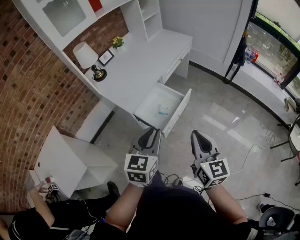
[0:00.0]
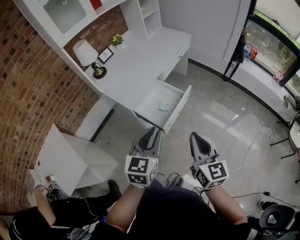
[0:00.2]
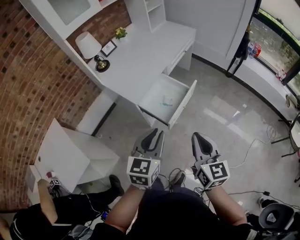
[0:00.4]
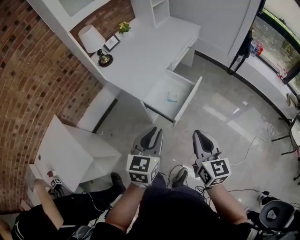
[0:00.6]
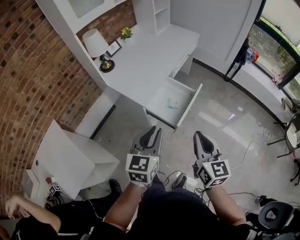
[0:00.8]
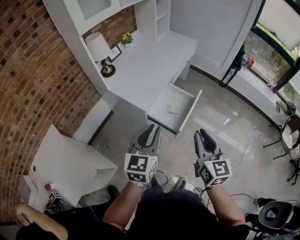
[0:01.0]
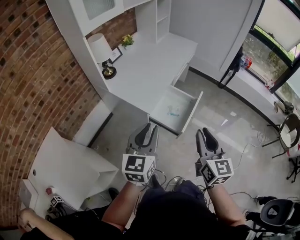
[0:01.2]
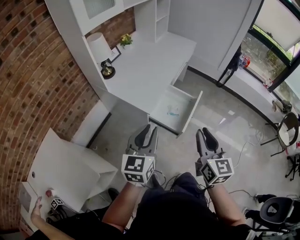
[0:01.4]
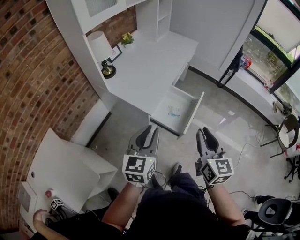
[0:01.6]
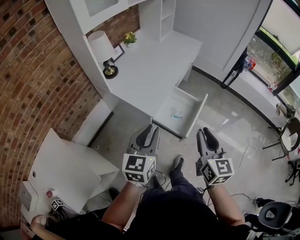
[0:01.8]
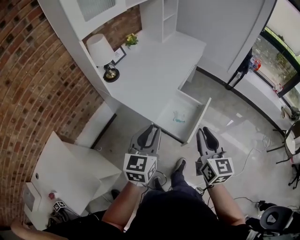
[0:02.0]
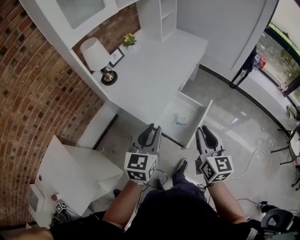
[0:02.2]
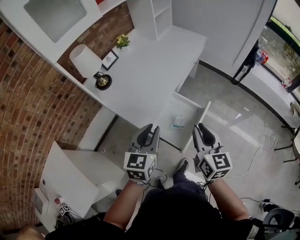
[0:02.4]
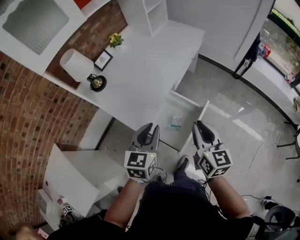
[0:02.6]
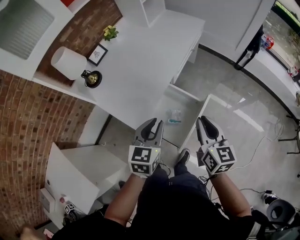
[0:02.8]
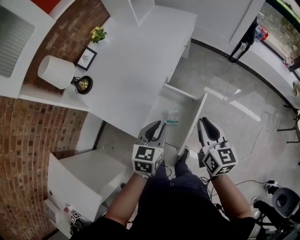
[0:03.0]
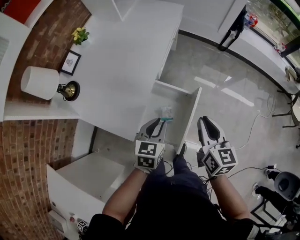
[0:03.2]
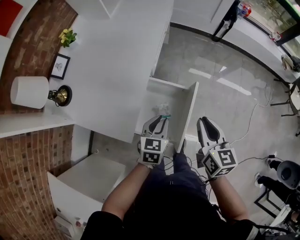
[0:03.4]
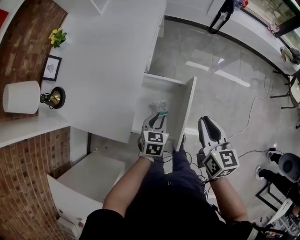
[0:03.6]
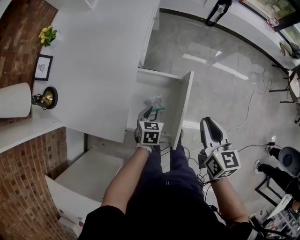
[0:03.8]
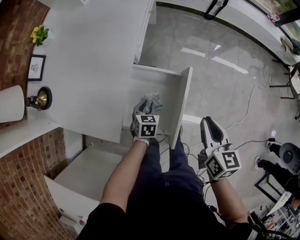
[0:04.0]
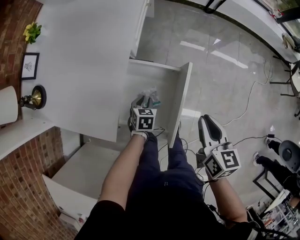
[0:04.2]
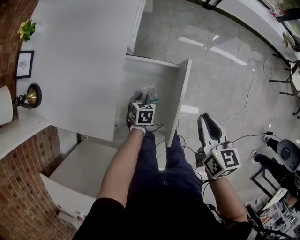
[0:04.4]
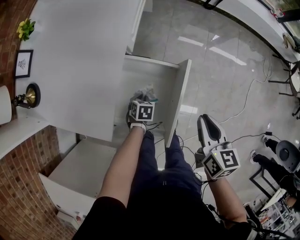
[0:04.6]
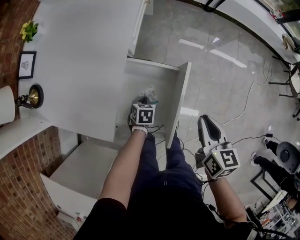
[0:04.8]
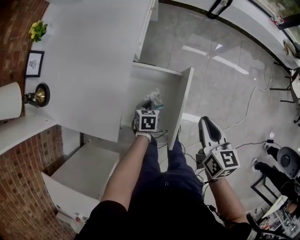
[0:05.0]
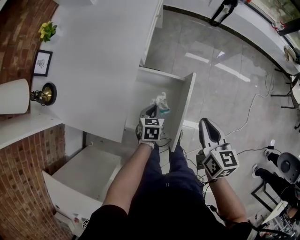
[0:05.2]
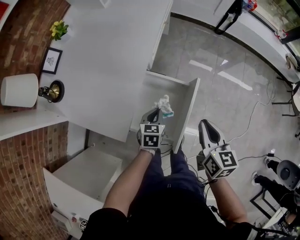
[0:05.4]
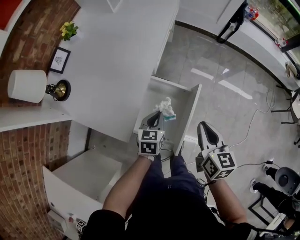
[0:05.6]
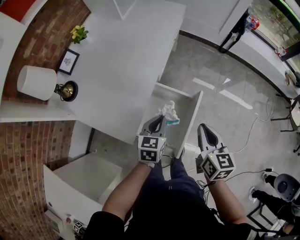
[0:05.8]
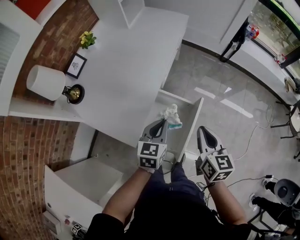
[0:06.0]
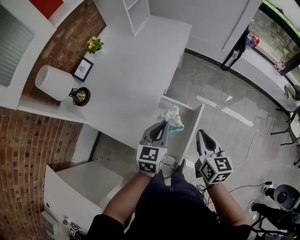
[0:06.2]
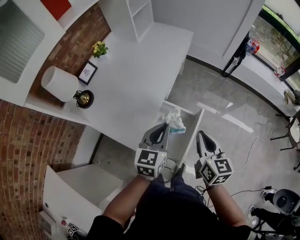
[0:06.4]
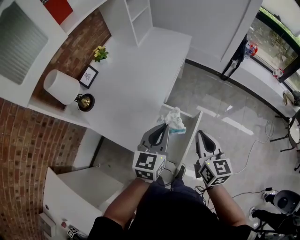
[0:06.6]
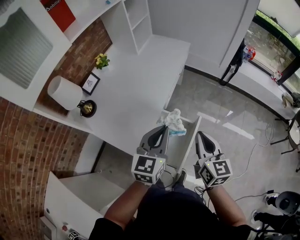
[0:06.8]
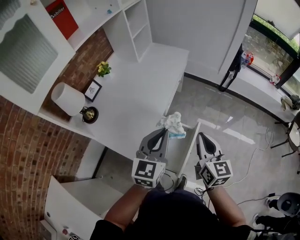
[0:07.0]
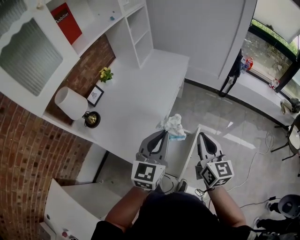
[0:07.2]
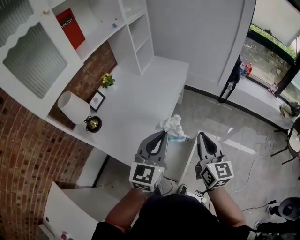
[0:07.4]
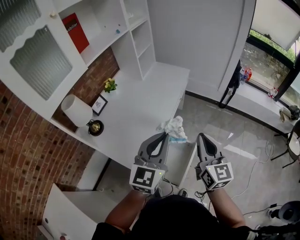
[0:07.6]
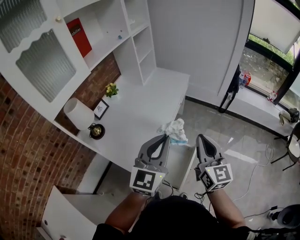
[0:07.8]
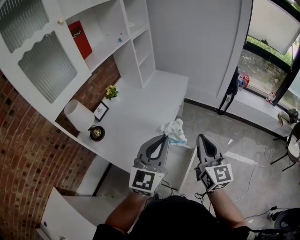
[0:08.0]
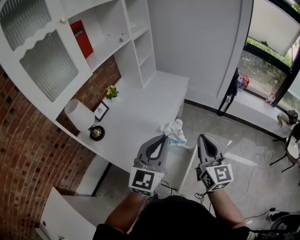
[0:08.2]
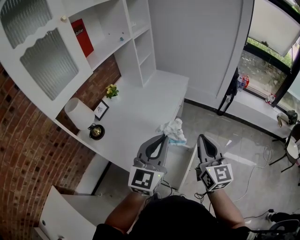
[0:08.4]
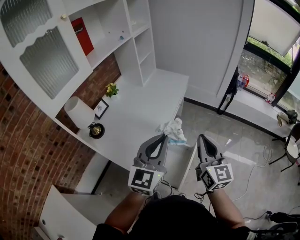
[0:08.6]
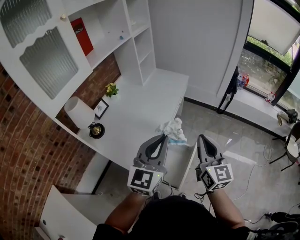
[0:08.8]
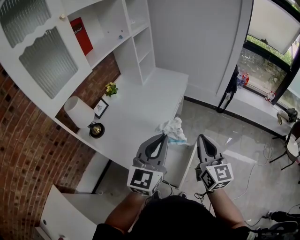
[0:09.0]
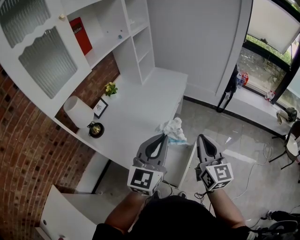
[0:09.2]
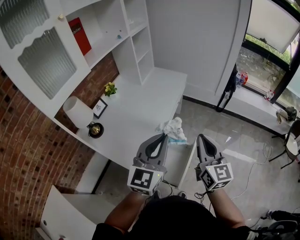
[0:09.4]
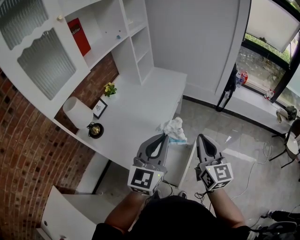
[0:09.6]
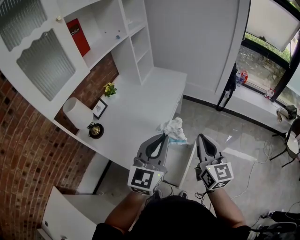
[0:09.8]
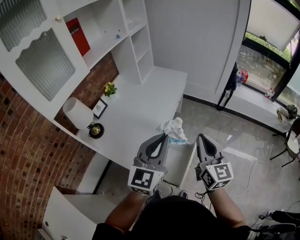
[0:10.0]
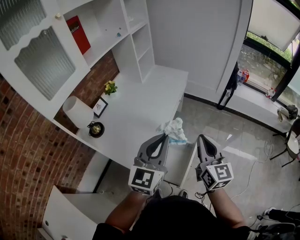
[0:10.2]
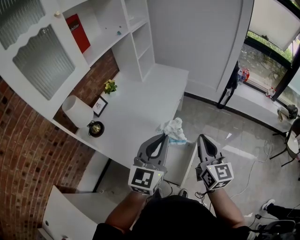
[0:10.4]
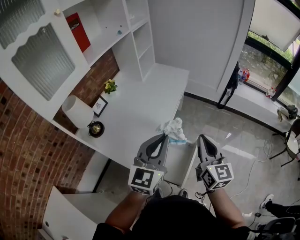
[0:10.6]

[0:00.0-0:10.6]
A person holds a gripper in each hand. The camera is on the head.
0:00.0 to 0:01.6: The grippers both shift to the left by roughly 20 cm.
0:01.6 to 0:03.0: Both grippers move forward, downward and to the right, some 35 cm. The left gripper changes its angle by roughly 20 degrees.
0:03.0 to 0:04.6: The left gripper goes approximately 40 cm downward, and tilts its fingers approximately 40 degrees downward, while the right gripper moves downward and to the right, approximately 15 cm, and turns by about 20 degrees.
0:04.6 to 0:06.0: The left gripper goes some 35 cm upward, and tilts its fingers roughly 40 degrees upward, while the right gripper shifts some 15 cm upward and to the left.
0:06.0 to 0:07.6: Both grippers move upward, roughly 25 cm. The left gripper swivels some 30 degrees, while the right gripper turns by roughly 30 degrees.
0:07.6 to 0:10.6: The grippers stay close to where they were, moving slightly.

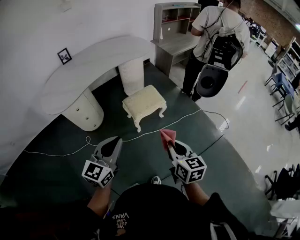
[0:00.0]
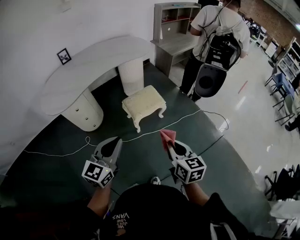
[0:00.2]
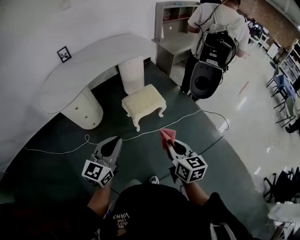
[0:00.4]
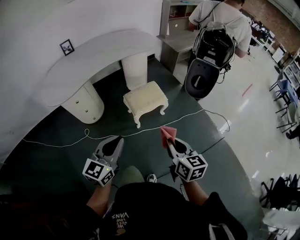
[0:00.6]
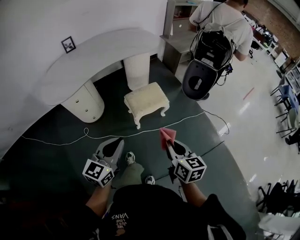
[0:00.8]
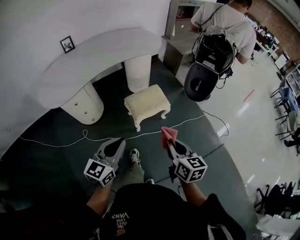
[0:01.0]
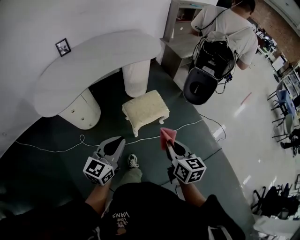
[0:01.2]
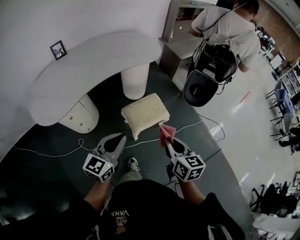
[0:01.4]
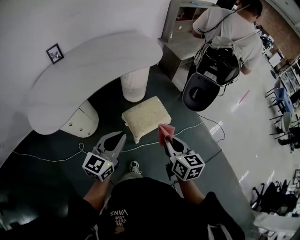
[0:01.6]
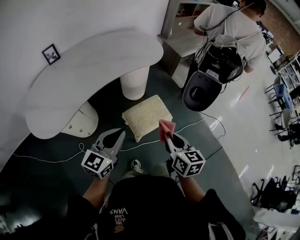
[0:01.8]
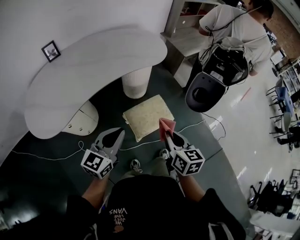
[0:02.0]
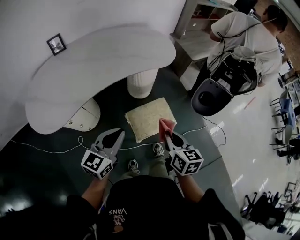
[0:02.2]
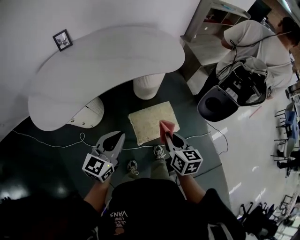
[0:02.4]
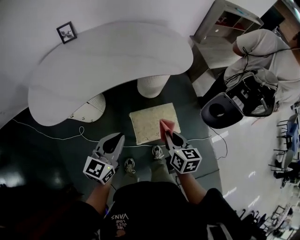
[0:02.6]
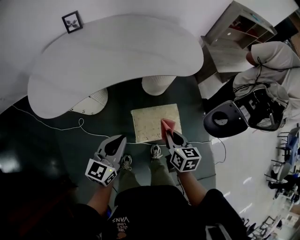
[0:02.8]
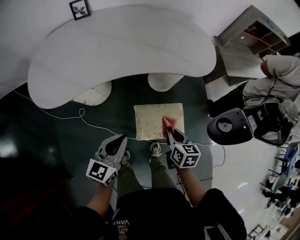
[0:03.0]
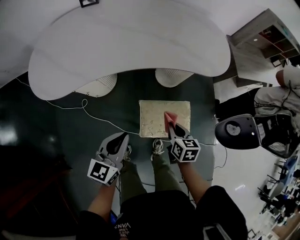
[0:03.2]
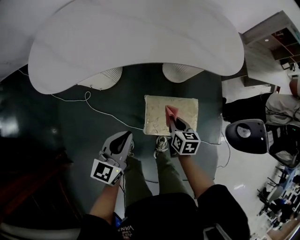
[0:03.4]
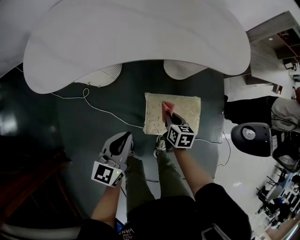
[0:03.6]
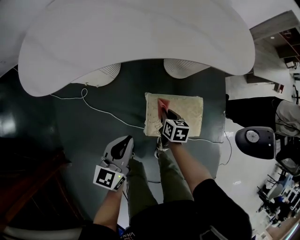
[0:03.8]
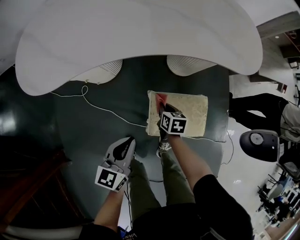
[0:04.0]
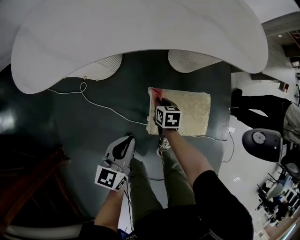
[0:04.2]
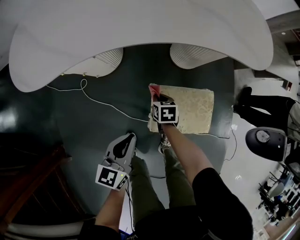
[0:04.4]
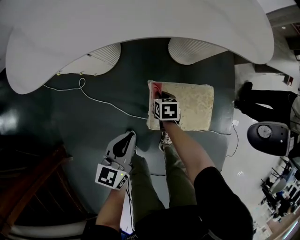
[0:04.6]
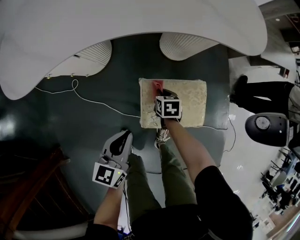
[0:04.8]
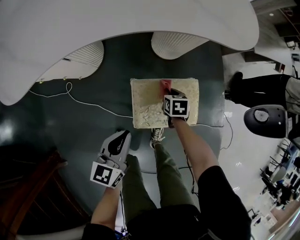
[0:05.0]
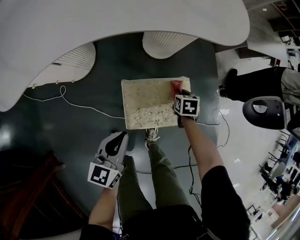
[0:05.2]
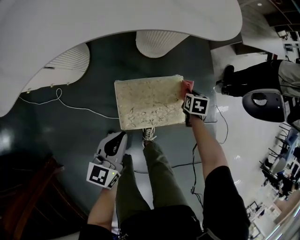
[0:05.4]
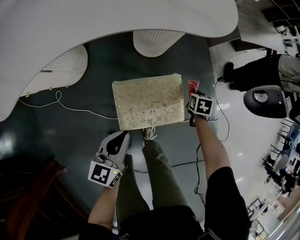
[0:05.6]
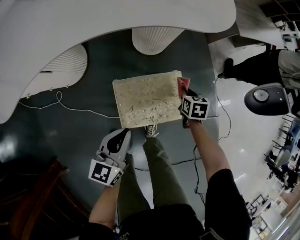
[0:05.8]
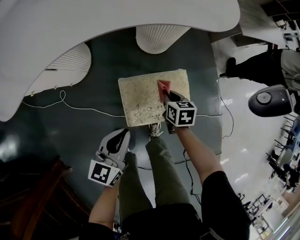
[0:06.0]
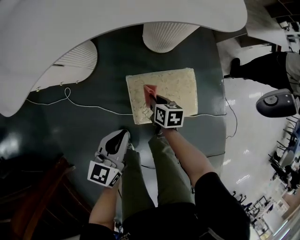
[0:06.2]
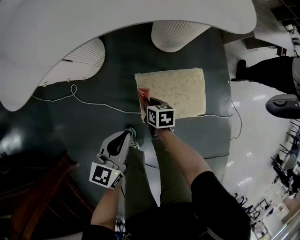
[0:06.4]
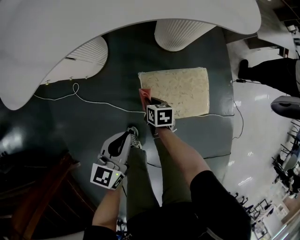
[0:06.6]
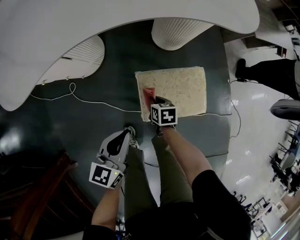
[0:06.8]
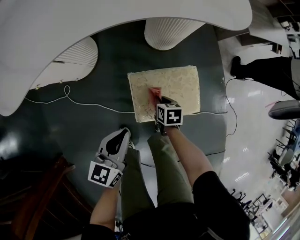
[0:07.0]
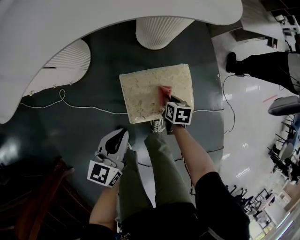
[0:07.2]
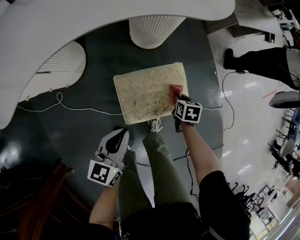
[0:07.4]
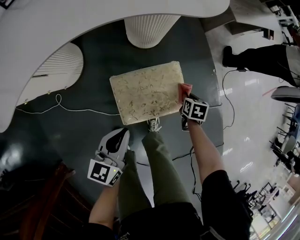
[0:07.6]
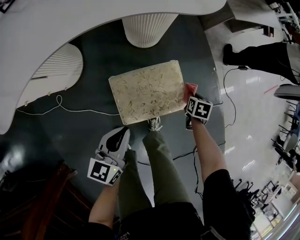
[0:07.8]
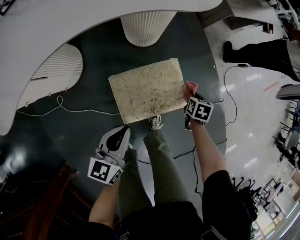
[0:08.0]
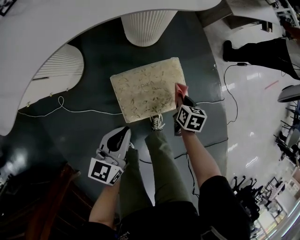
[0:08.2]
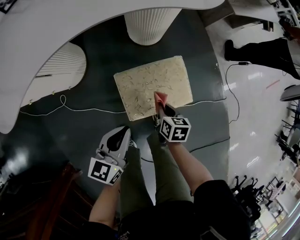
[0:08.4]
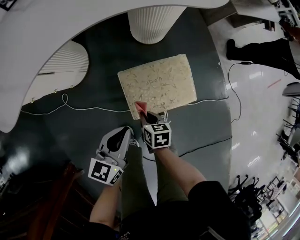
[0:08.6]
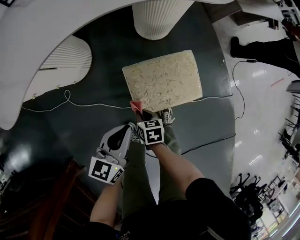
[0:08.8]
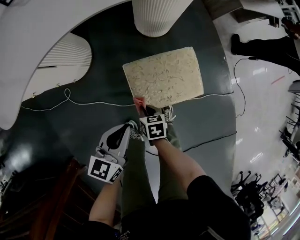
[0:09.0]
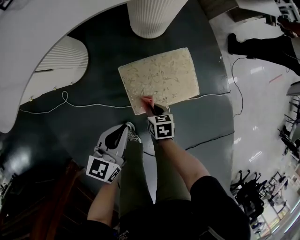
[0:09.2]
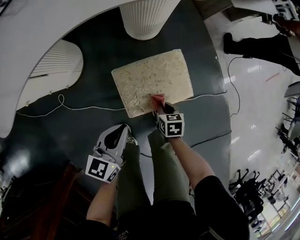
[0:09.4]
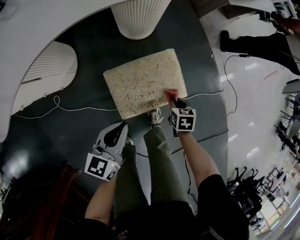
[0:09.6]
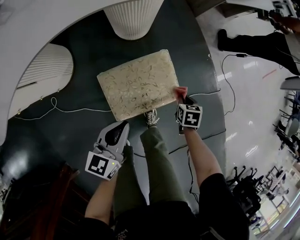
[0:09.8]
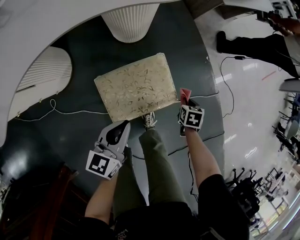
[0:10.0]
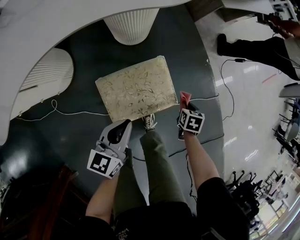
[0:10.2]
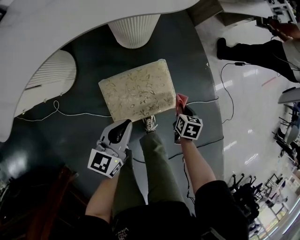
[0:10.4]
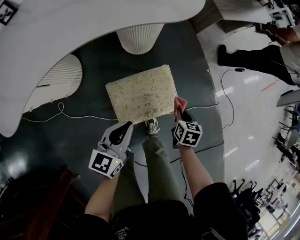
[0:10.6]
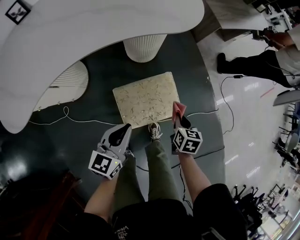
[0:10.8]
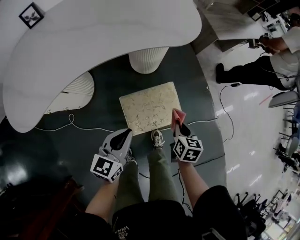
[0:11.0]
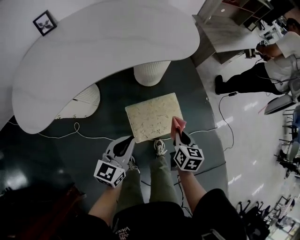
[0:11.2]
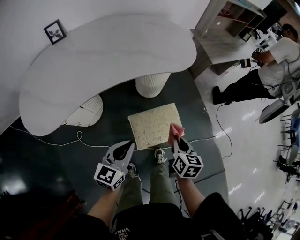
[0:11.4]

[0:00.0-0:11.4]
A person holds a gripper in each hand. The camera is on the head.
0:00.0 to 0:01.4: The grippers both shift forward by some 20 cm.
0:01.4 to 0:02.8: Both grippers travel together forward and downward, about 25 cm. The right gripper rotates approximately 20 degrees. The left gripper rotates about 20 degrees.
0:02.8 to 0:04.2: The left gripper is displaced downward by approximately 20 cm. The right gripper heads downward, covering approximately 35 cm, and rotates about 20 degrees.
0:04.2 to 0:05.6: The right gripper moves about 35 cm, and turns by some 30 degrees. Meanwhile the left gripper shifts by roughly 15 cm.
0:07.2 to 0:08.6: The right gripper changes place by approximately 15 cm.
0:08.6 to 0:10.0: The left gripper moves roughly 10 cm; the right gripper shifts by roughly 35 cm, and turns by approximately 30 degrees.
0:10.0 to 0:11.4: The right gripper moves upward and to the left, roughly 40 cm, and tips its fingers upward by some 30 degrees; the left gripper moves upward and to the left, about 20 cm.

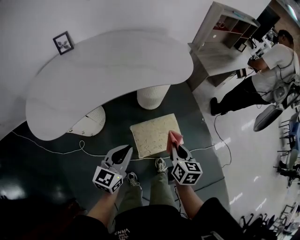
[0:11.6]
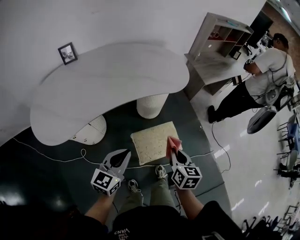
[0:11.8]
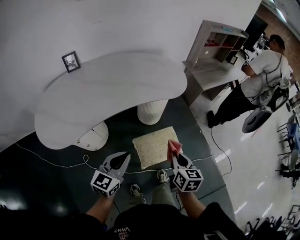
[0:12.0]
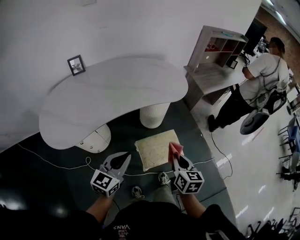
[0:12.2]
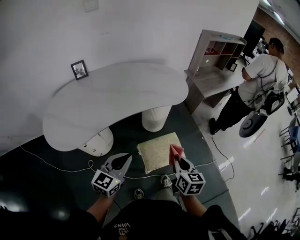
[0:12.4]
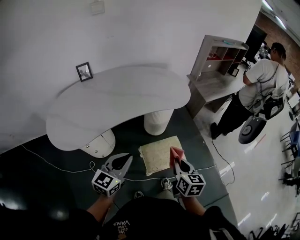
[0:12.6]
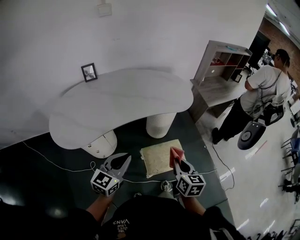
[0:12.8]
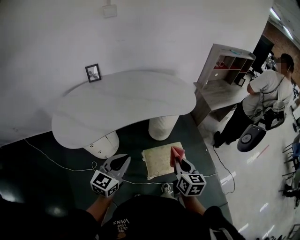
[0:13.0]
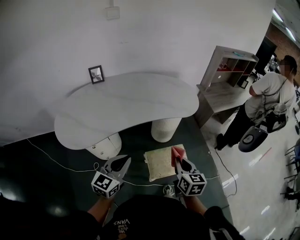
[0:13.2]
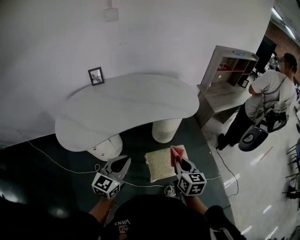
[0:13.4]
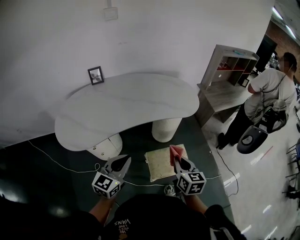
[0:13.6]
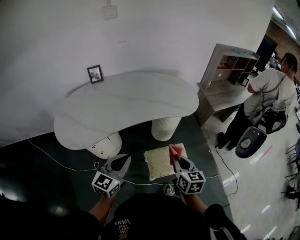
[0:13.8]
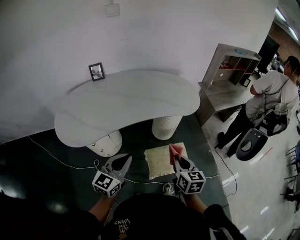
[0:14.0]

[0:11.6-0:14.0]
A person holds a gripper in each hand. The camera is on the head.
0:11.6 to 0:12.8: Both grippers travel together upward and backward, some 15 cm.
0:12.8 to 0:14.0: There are only small adjustments of the grippers.
